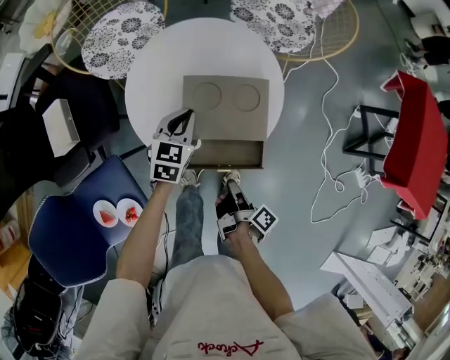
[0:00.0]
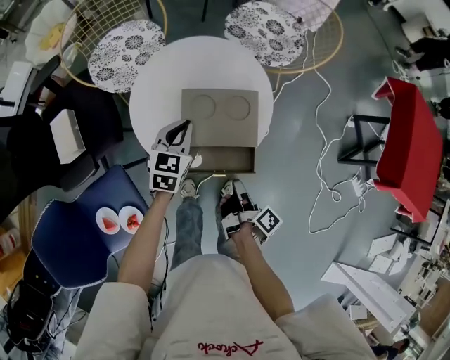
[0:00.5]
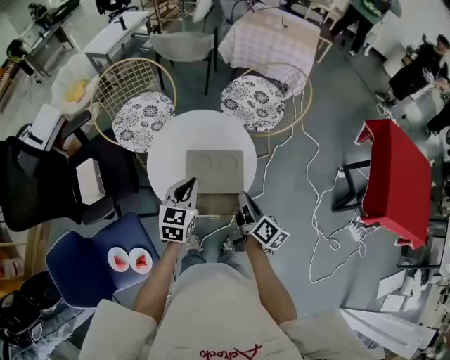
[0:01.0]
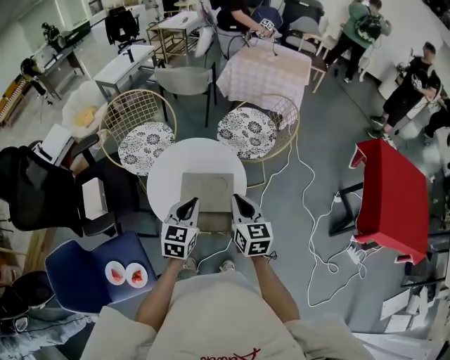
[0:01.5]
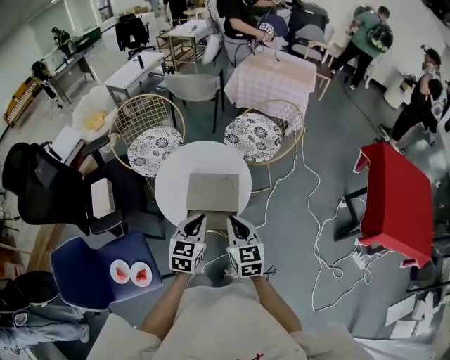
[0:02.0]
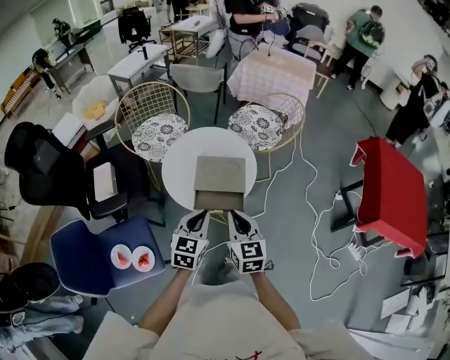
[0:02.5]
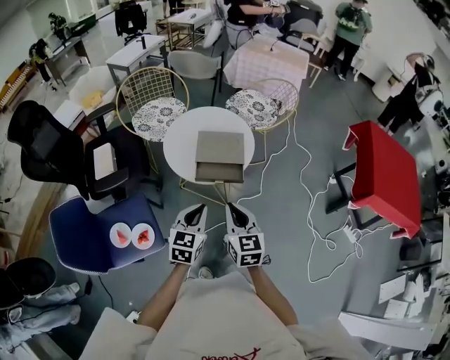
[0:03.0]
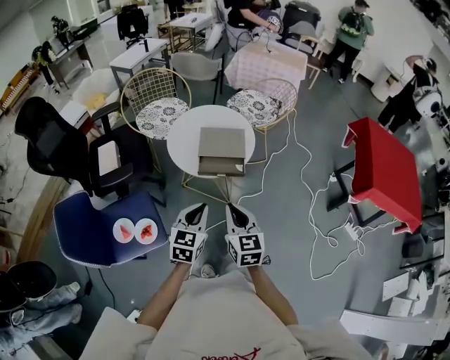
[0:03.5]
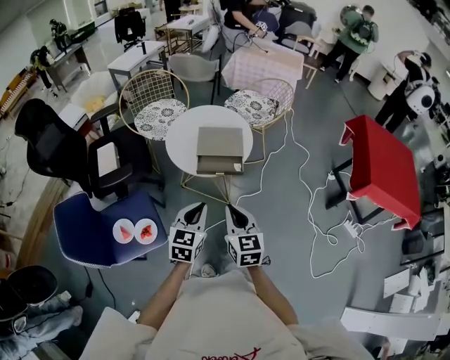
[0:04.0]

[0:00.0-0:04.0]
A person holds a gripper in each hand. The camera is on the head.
0:00.0 to 0:02.0: The right gripper heads upward, covering approximately 25 cm, and rolls counterclockwise, seen from behind, by about 100 degrees. The left gripper moves upward, backward and to the right, about 25 cm.
0:02.0 to 0:04.0: Both grippers move backward, about 25 cm.

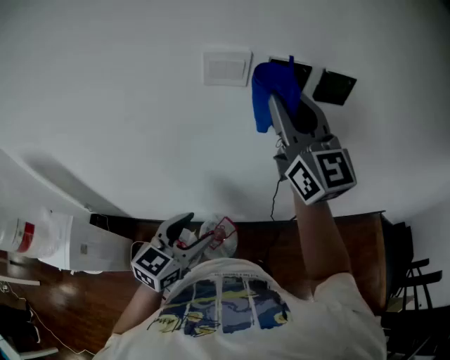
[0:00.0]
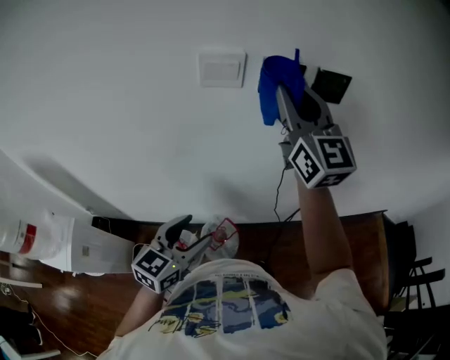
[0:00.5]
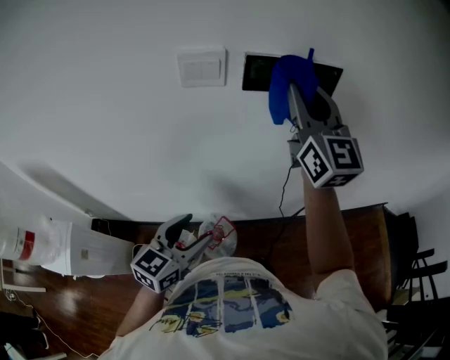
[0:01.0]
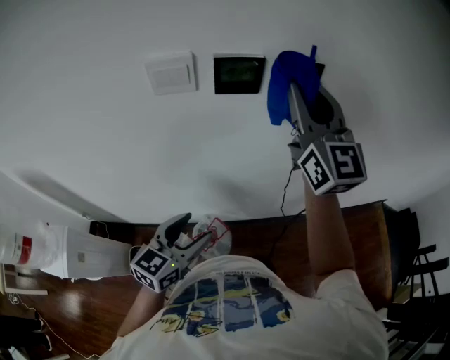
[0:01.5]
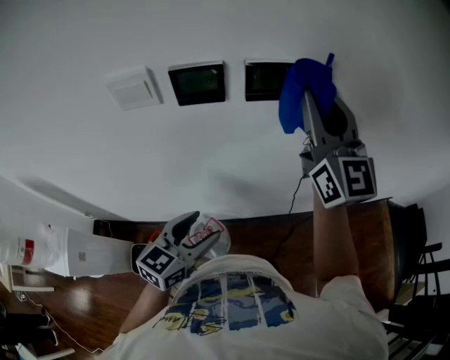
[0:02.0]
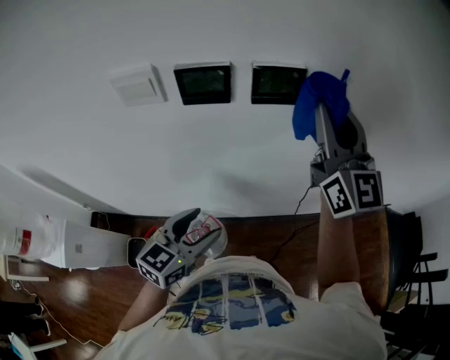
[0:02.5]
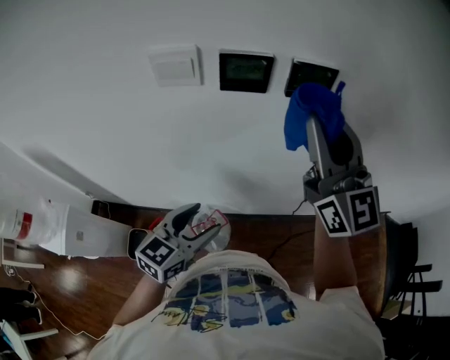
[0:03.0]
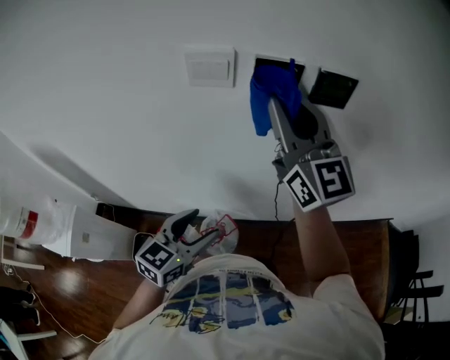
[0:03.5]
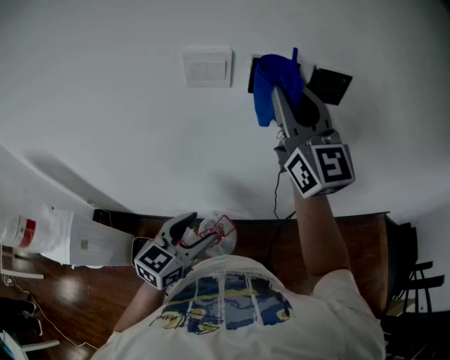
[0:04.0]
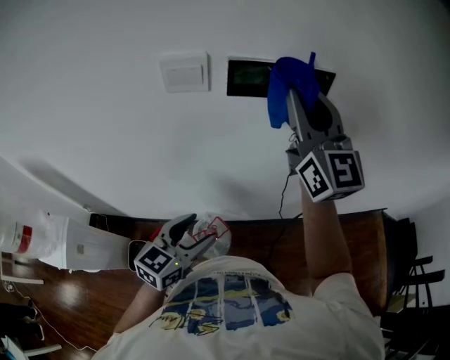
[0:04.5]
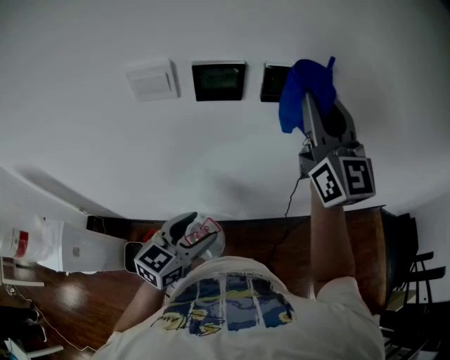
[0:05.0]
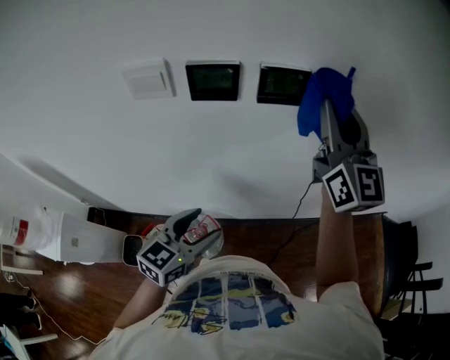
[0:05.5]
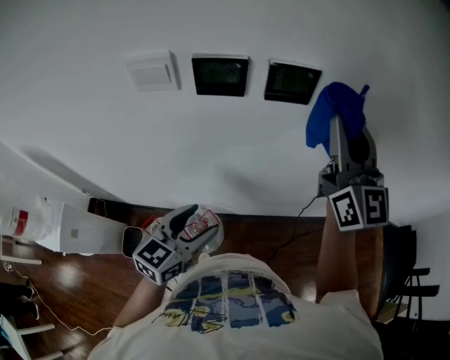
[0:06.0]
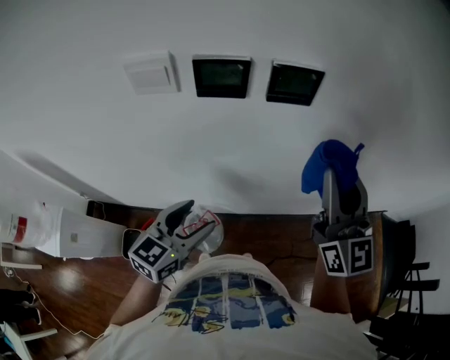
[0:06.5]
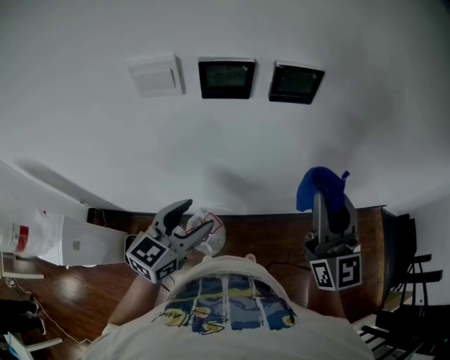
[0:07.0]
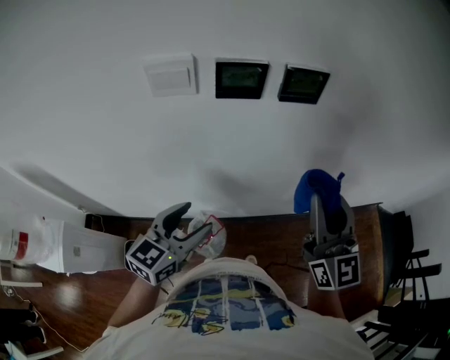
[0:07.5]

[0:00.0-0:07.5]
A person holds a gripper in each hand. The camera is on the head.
0:00.0 to 0:02.0: The left gripper is displaced to the right and forward by about 15 cm. The right gripper travels to the right by about 20 cm.
0:02.0 to 0:04.0: The right gripper travels to the left by approximately 20 cm, while the left gripper goes about 10 cm to the left.
0:04.0 to 0:05.5: The right gripper travels to the right by roughly 20 cm; the left gripper shifts roughly 10 cm to the right and forward.
0:05.5 to 0:07.5: The left gripper goes approximately 10 cm to the left. The right gripper travels backward and downward by approximately 20 cm.

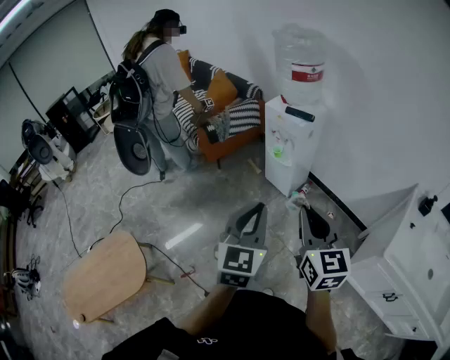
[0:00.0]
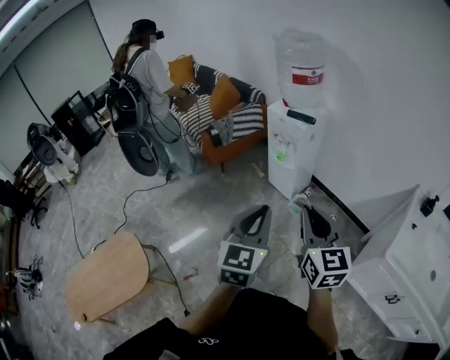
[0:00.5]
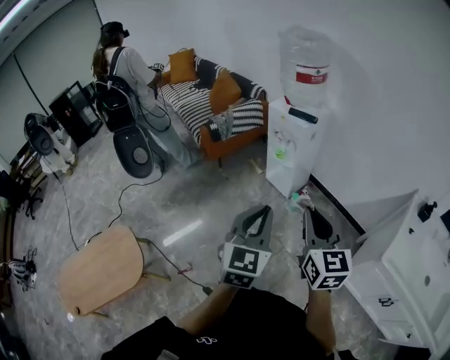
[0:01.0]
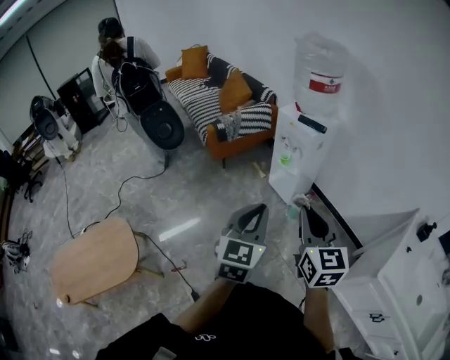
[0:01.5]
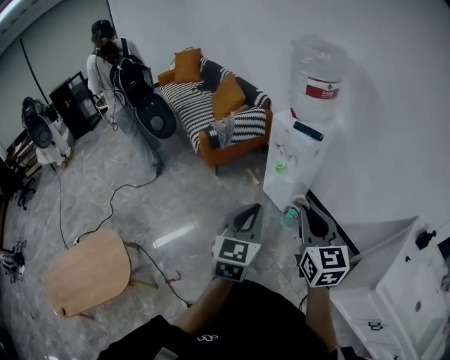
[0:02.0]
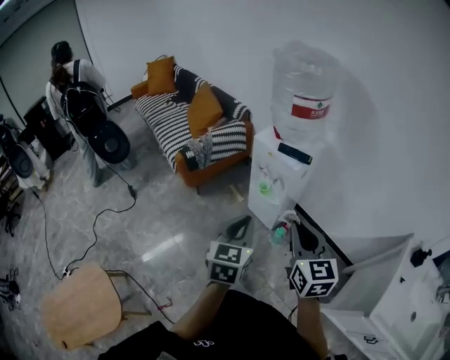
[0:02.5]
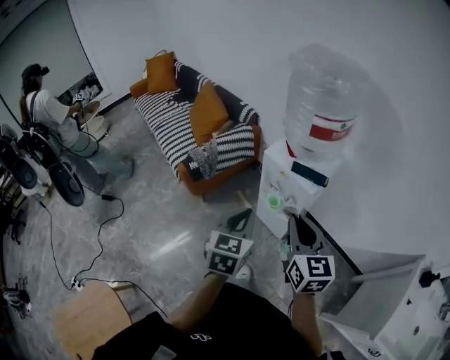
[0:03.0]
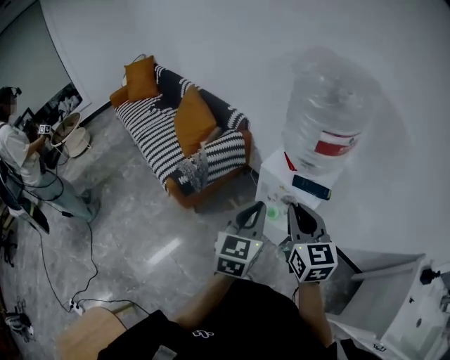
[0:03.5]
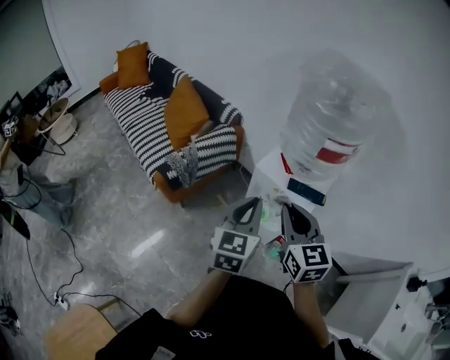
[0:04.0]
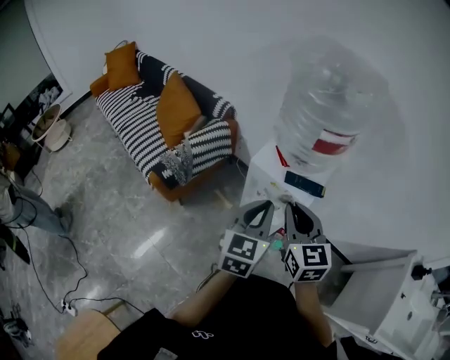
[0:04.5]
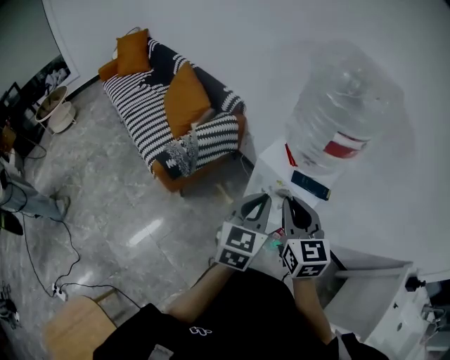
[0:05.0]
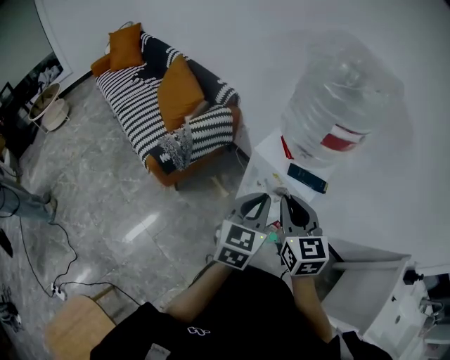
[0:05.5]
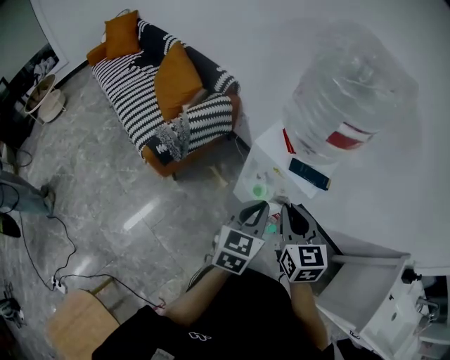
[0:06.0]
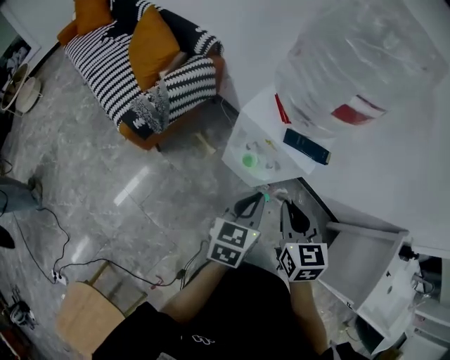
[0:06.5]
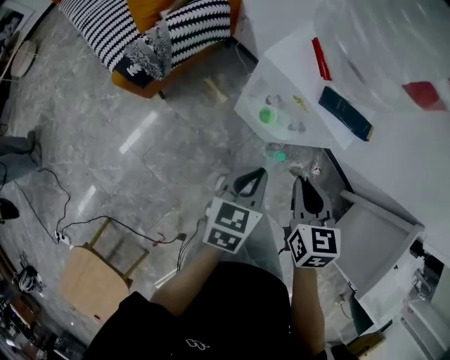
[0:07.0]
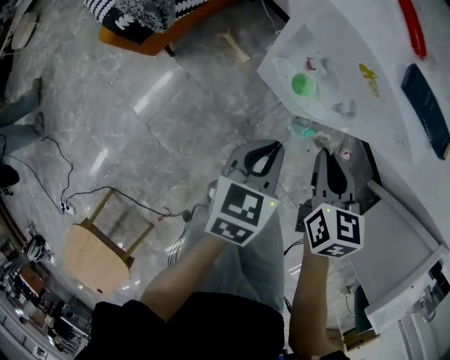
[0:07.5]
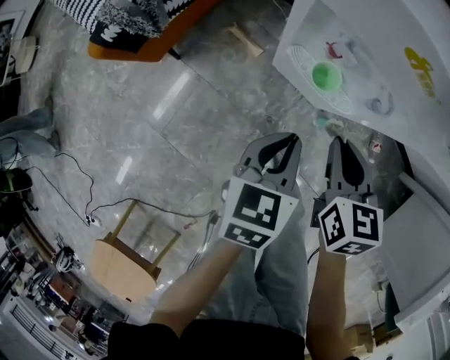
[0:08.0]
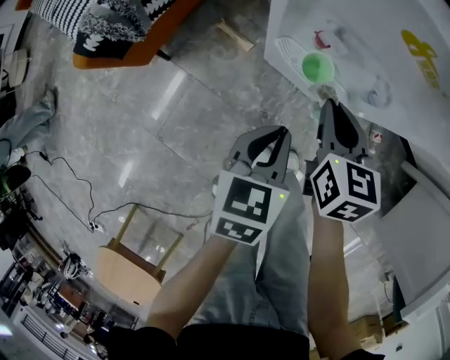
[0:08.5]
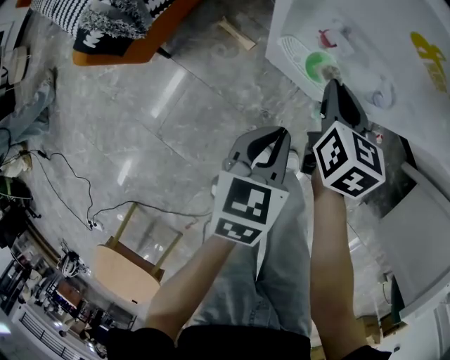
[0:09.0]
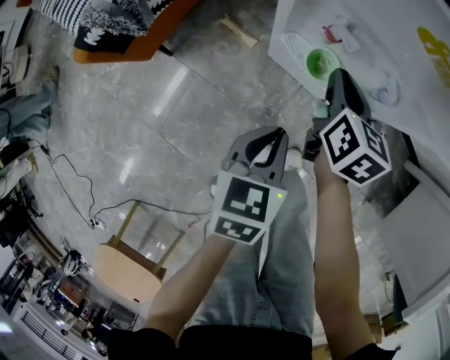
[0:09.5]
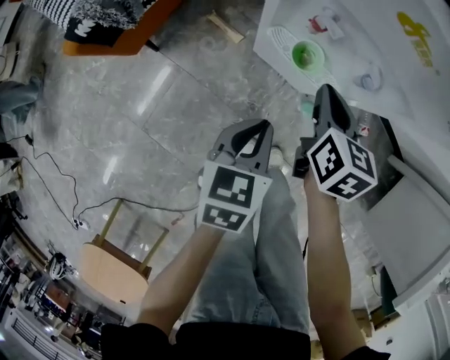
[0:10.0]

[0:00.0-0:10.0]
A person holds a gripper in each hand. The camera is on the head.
0:00.0 to 0:02.0: Both grippers move forward, approximately 10 cm.
0:02.0 to 0:04.0: The pair of grippers is taken forward, some 50 cm.
0:04.0 to 0:06.0: Both grippers travel together downward, some 10 cm.
0:06.0 to 0:08.0: The grippers both shift downward by approximately 35 cm. The right gripper swivels roughly 20 degrees, while the left gripper changes its angle by about 20 degrees.
0:08.0 to 0:10.0: The right gripper is displaced forward by roughly 5 cm.

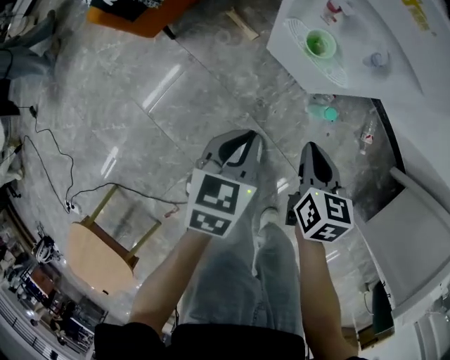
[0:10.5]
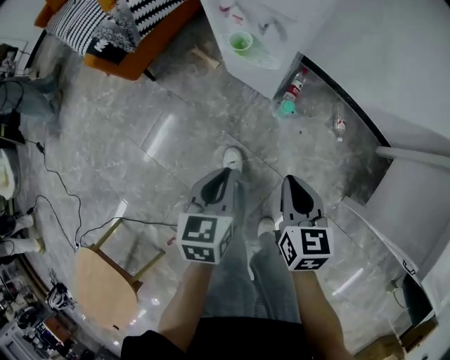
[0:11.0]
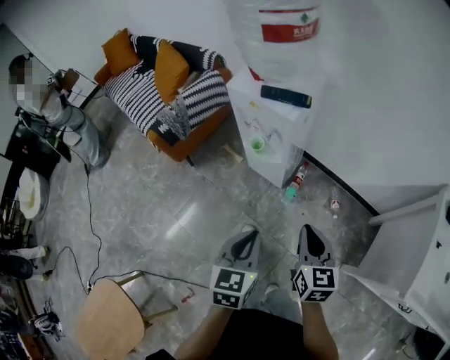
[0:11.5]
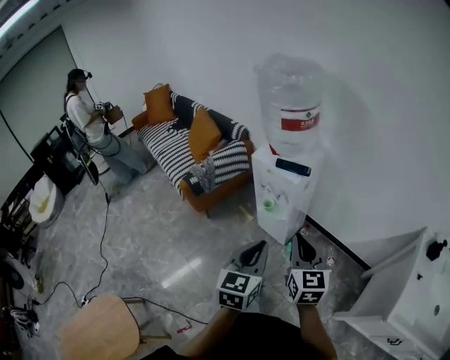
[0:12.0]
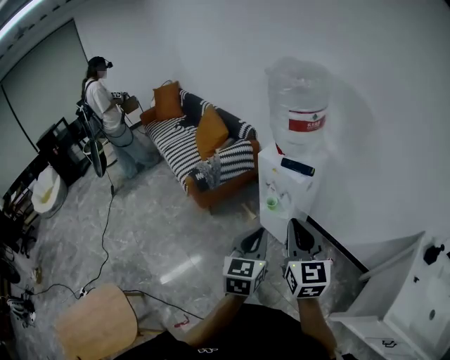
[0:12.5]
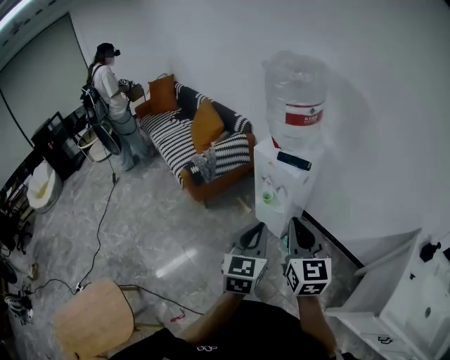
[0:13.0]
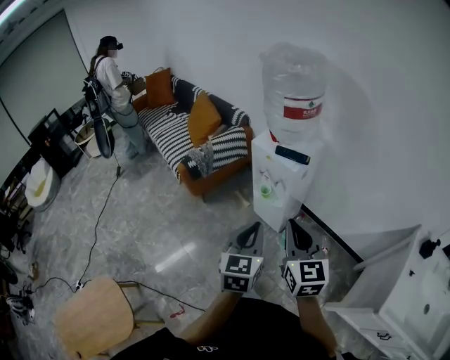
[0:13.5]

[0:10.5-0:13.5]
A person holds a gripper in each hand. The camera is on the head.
0:10.5 to 0:12.0: The right gripper moves upward, about 50 cm, and tips its fingers upward by roughly 40 degrees. Meanwhile the left gripper is displaced upward and backward by some 50 cm, and angles its fingers upward, by about 30 degrees.

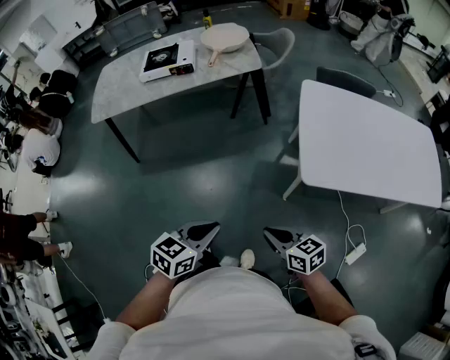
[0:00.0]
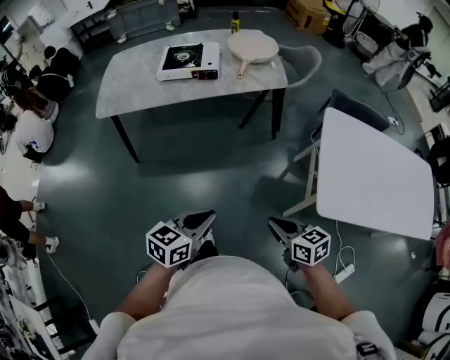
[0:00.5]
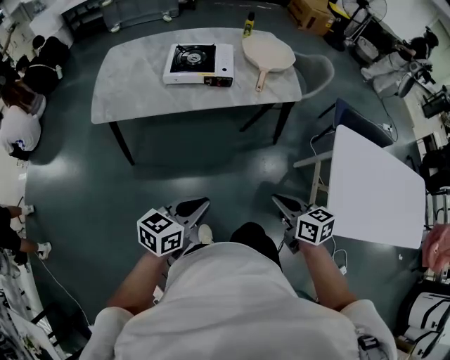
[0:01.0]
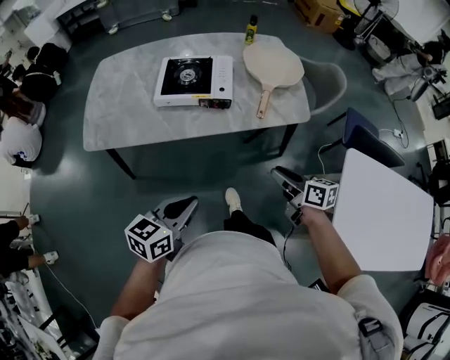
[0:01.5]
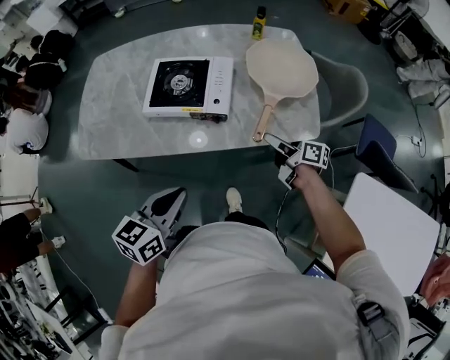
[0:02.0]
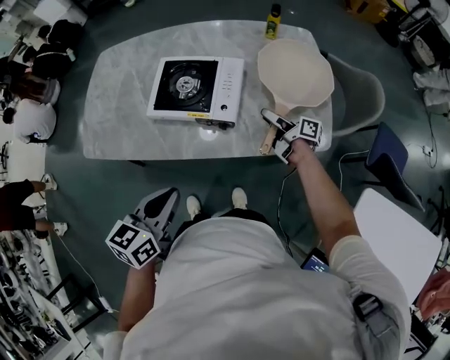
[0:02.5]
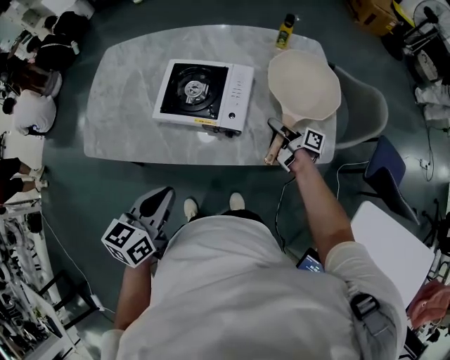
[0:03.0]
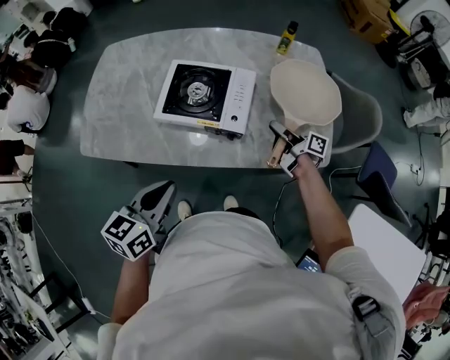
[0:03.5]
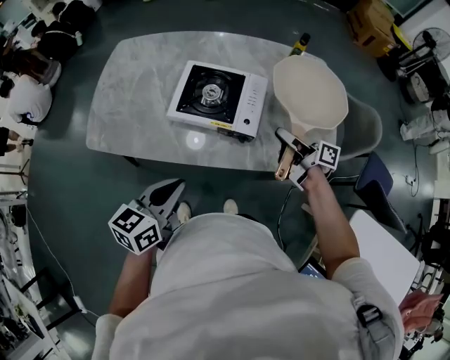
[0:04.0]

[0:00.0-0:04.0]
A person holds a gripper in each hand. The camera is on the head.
0:00.0 to 0:02.0: The pair of grippers is taken forward, roughly 70 cm. The right gripper changes its angle by about 40 degrees, and opens; the left gripper swivels about 20 degrees.
0:02.0 to 0:04.0: The left gripper goes approximately 10 cm to the left and forward; the right gripper shifts approximately 15 cm forward, upward and to the left, and closes up.
